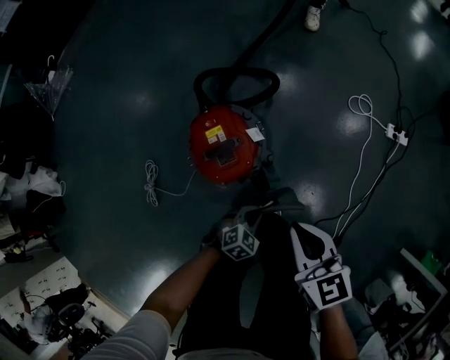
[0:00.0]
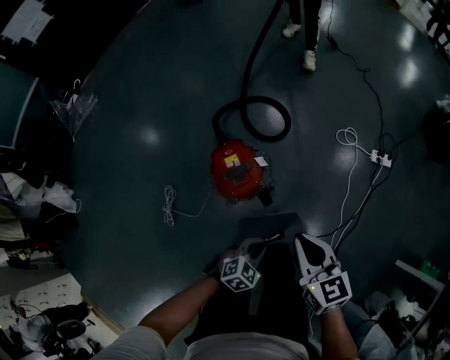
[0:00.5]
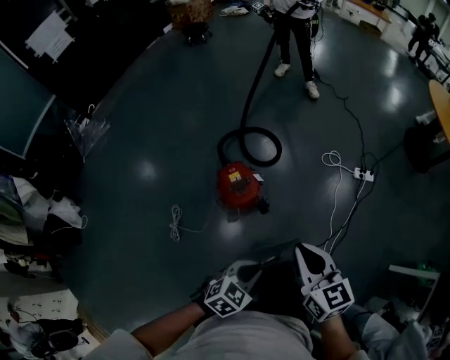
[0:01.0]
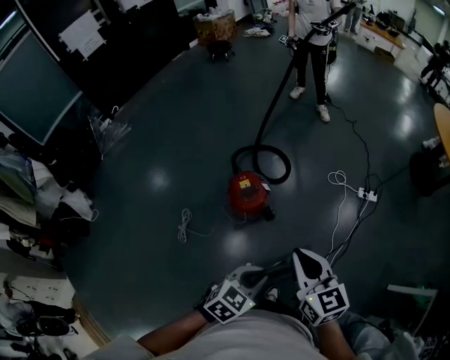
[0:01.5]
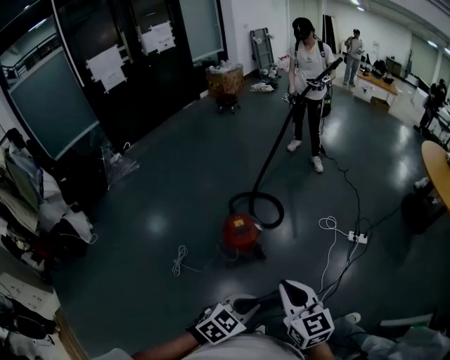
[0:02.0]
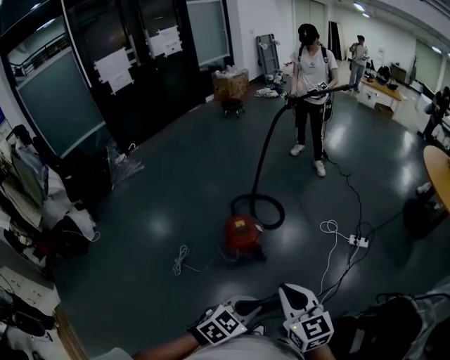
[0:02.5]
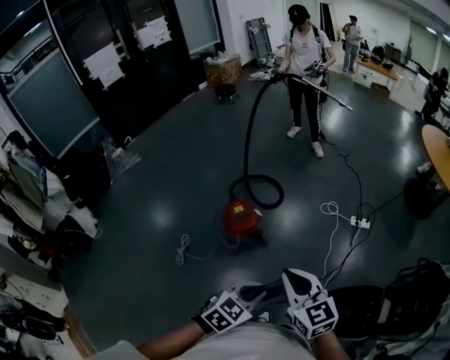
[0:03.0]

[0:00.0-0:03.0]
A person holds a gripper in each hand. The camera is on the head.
0:00.0 to 0:01.5: The left gripper moves upward, roughly 50 cm, and rotates roughly 20 degrees. The right gripper heads upward and backward, covering approximately 40 cm.
0:01.5 to 0:03.0: The left gripper goes roughly 10 cm to the right and backward. The right gripper shifts roughly 10 cm backward and to the right.

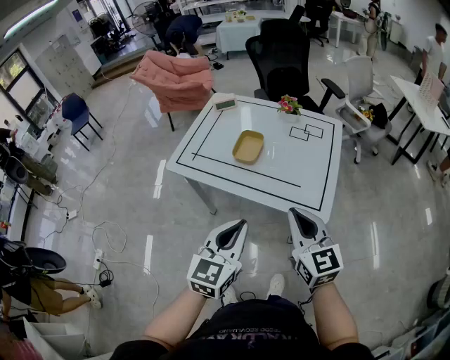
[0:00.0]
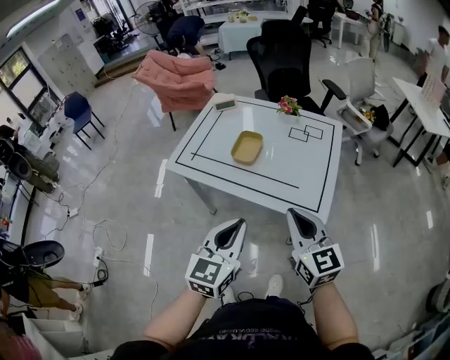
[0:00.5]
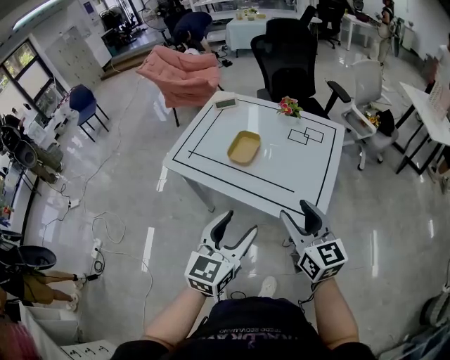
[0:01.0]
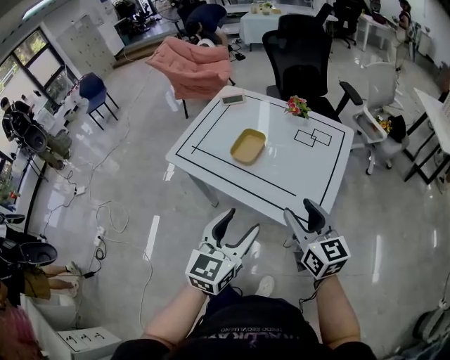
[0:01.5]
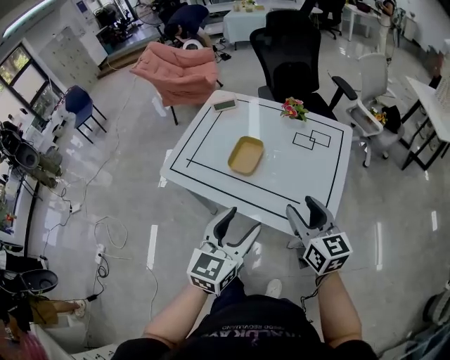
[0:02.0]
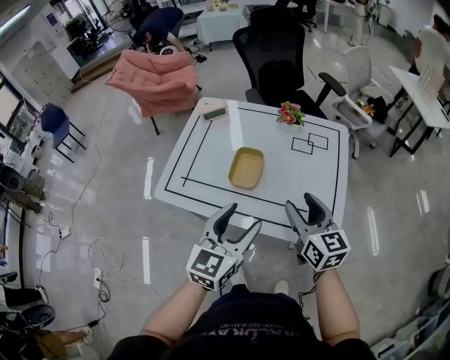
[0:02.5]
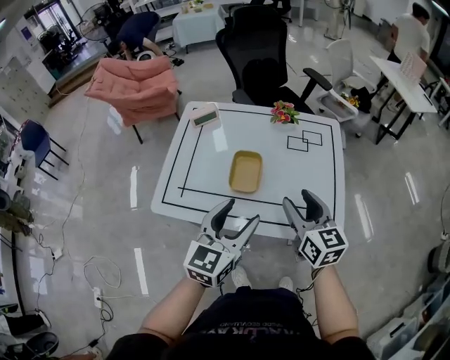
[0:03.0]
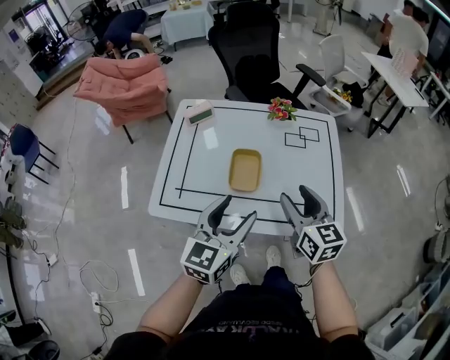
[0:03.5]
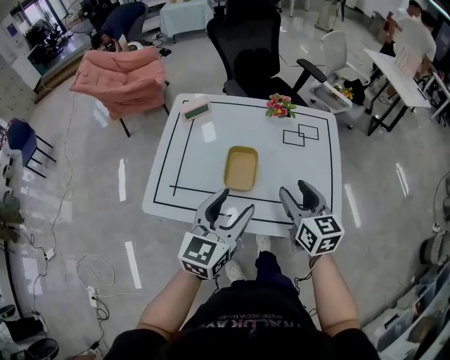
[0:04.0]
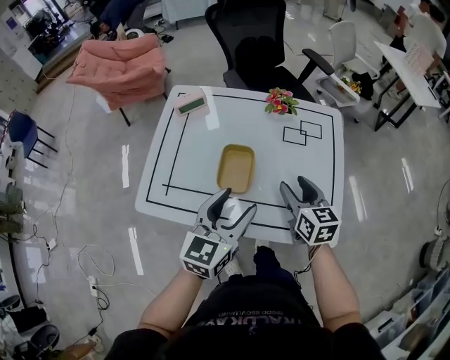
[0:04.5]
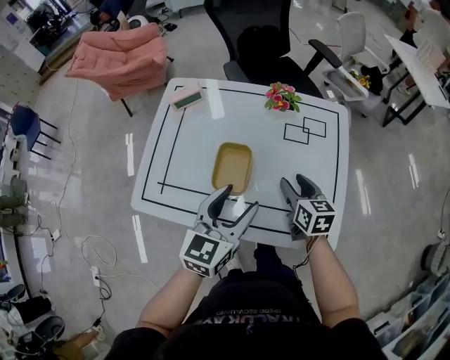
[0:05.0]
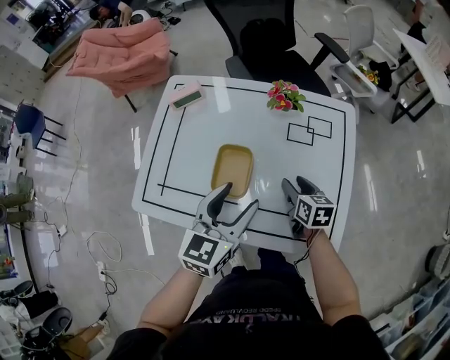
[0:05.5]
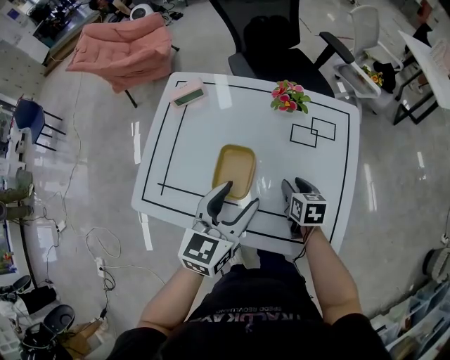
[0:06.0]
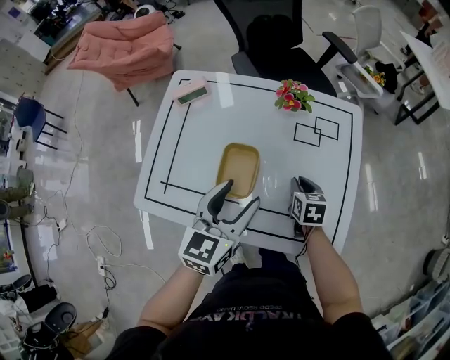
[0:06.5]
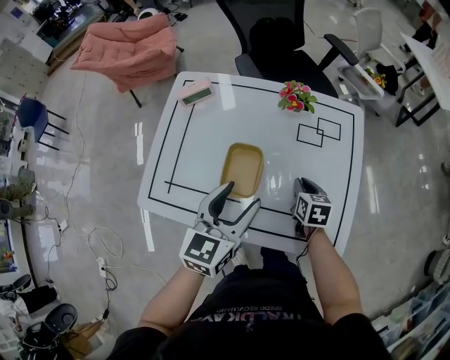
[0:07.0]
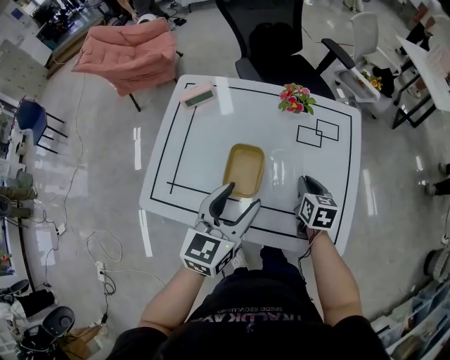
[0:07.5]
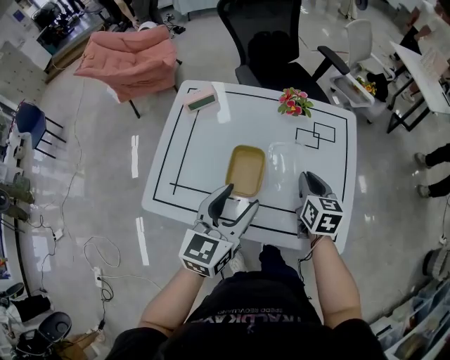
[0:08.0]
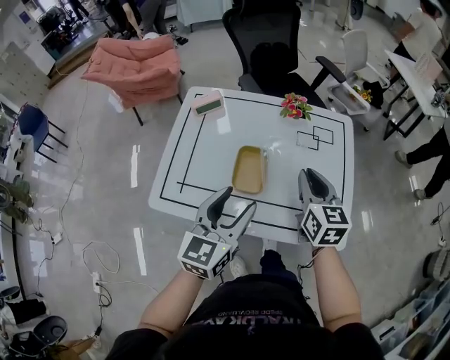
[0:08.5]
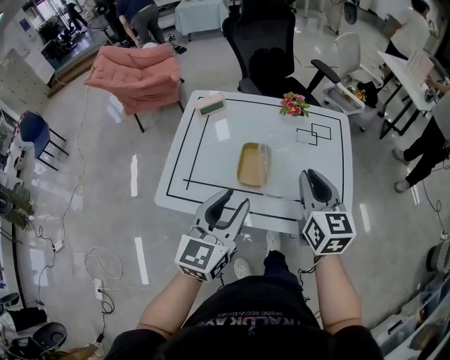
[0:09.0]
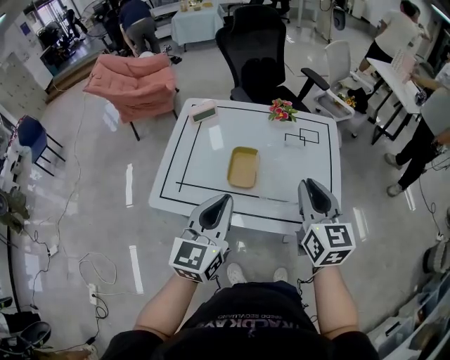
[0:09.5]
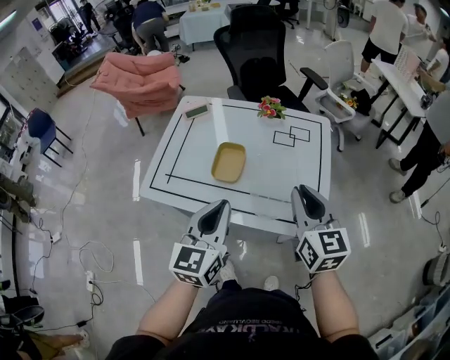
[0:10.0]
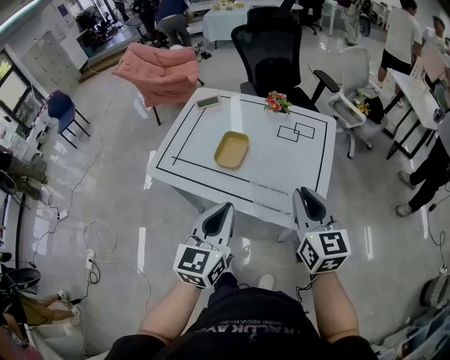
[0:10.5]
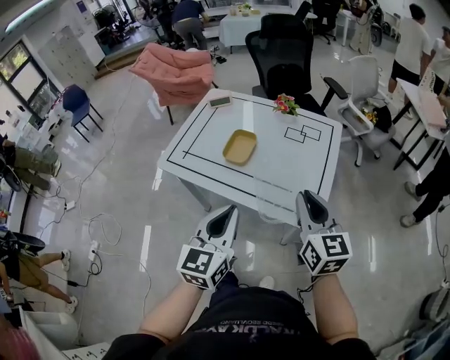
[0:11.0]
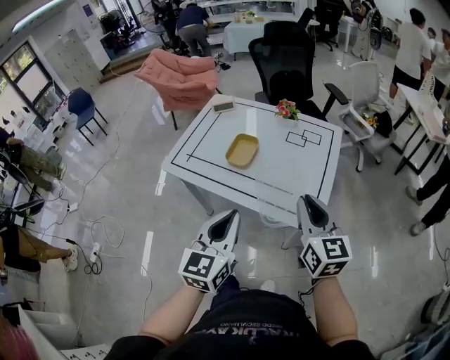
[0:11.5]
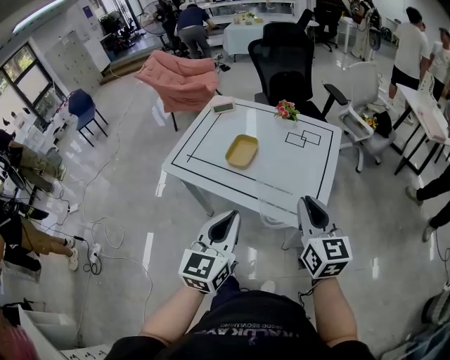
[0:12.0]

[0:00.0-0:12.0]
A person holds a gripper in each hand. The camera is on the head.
0:00.0 to 0:02.0: The left gripper is displaced forward by approximately 10 cm, and opens up. Meanwhile the right gripper heads forward and to the right, covering some 15 cm, and opens its fingers.
0:02.0 to 0:04.0: The two grippers go about 15 cm forward and to the left. The right gripper changes its angle by roughly 20 degrees.
0:04.0 to 0:06.0: The left gripper moves forward, to the right and downward, some 15 cm, while the right gripper heads downward and forward, covering approximately 25 cm, and rotates some 30 degrees.
0:06.0 to 0:08.0: The right gripper shifts roughly 10 cm upward, and closes up, while the left gripper changes place by about 5 cm.
0:08.0 to 0:10.0: The right gripper moves upward and backward, approximately 25 cm, and swivels roughly 20 degrees. Meanwhile the left gripper heads backward and upward, covering about 15 cm, and closes up.
0:10.0 to 0:12.0: The right gripper shifts about 10 cm backward. Meanwhile the left gripper shifts about 15 cm backward and to the right.

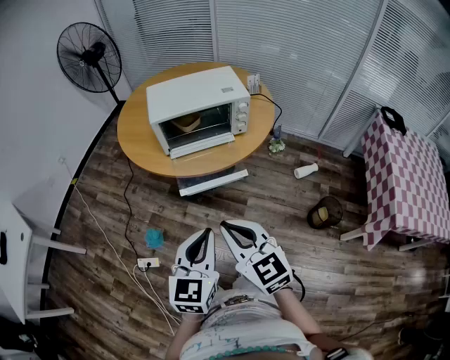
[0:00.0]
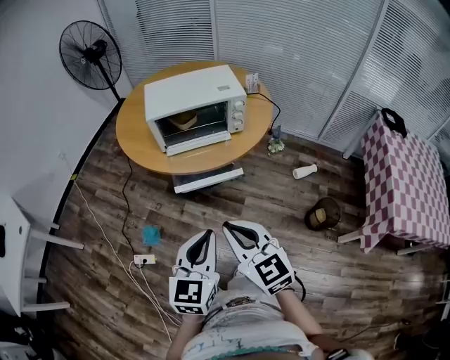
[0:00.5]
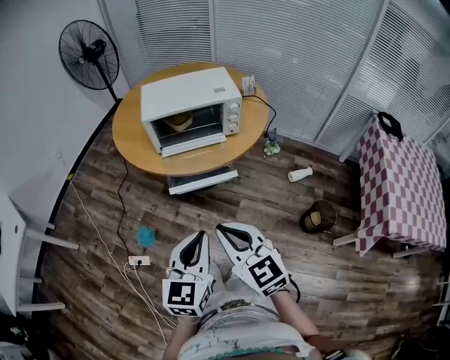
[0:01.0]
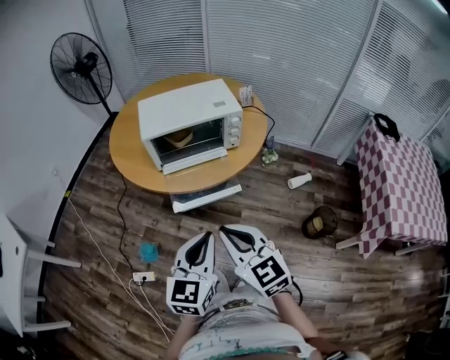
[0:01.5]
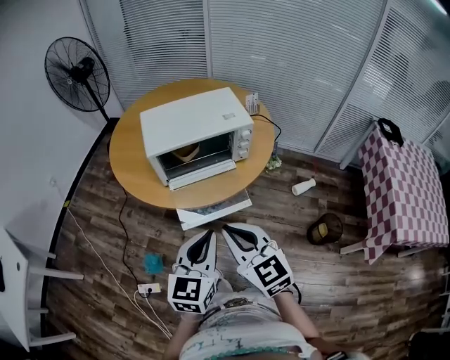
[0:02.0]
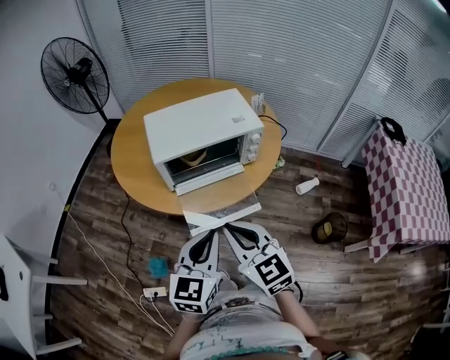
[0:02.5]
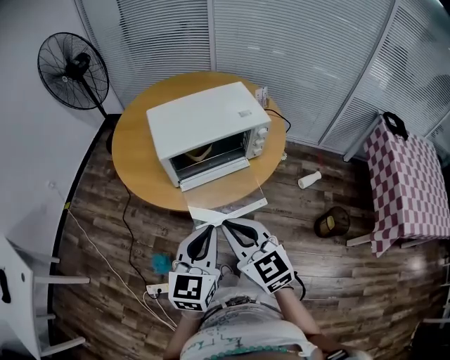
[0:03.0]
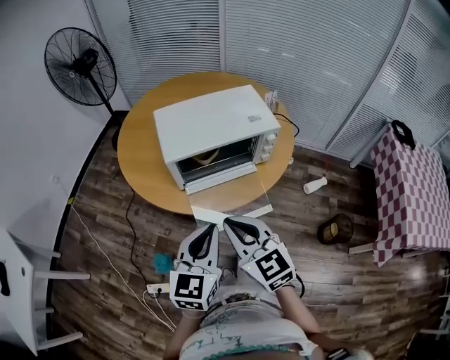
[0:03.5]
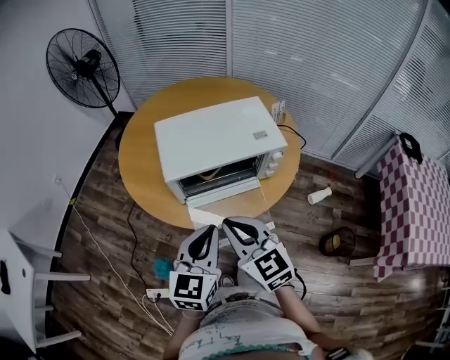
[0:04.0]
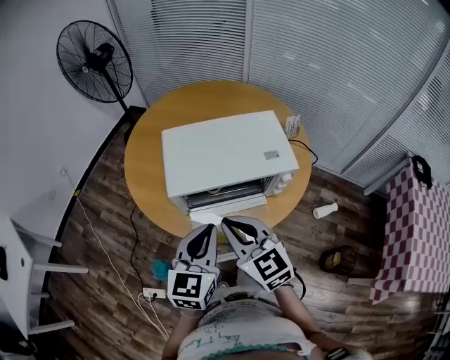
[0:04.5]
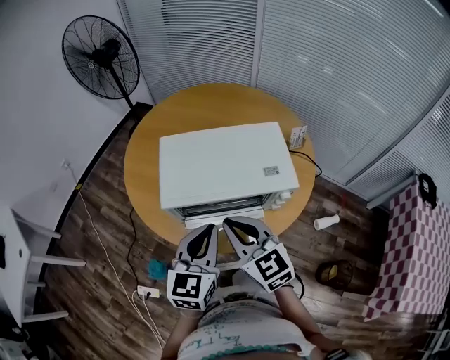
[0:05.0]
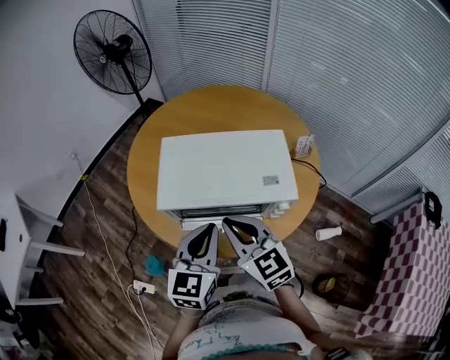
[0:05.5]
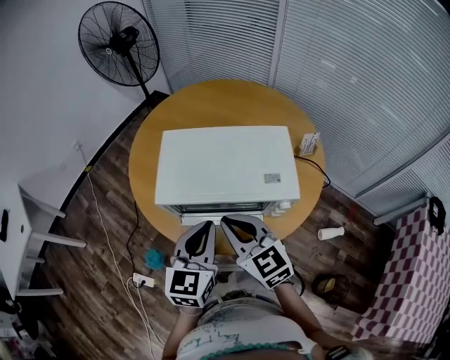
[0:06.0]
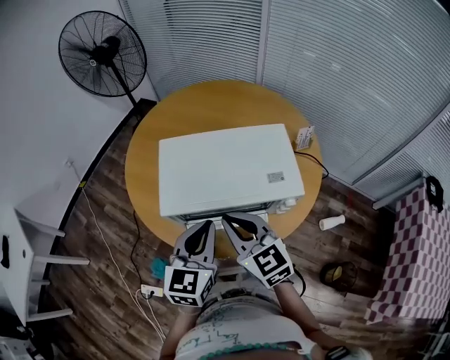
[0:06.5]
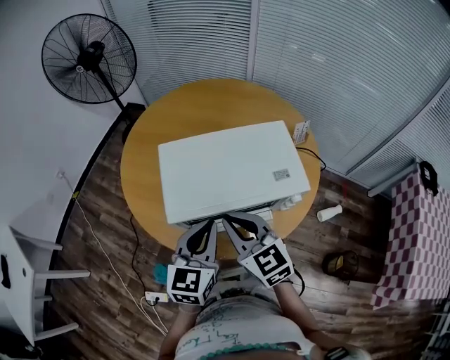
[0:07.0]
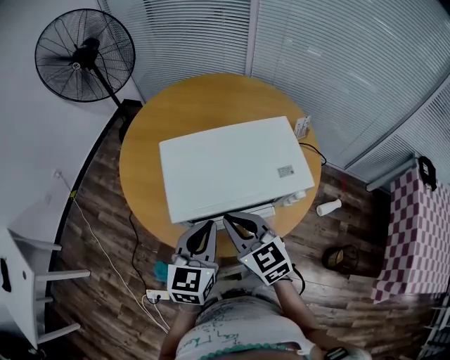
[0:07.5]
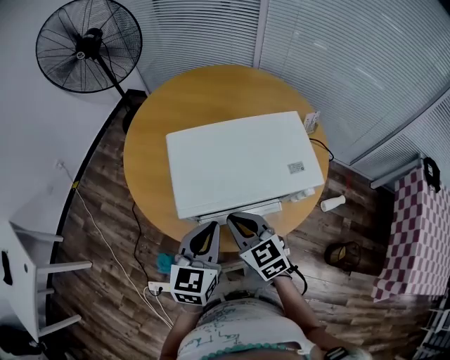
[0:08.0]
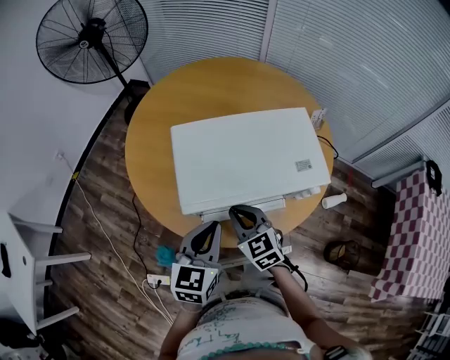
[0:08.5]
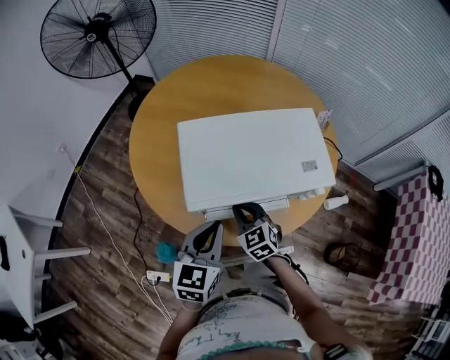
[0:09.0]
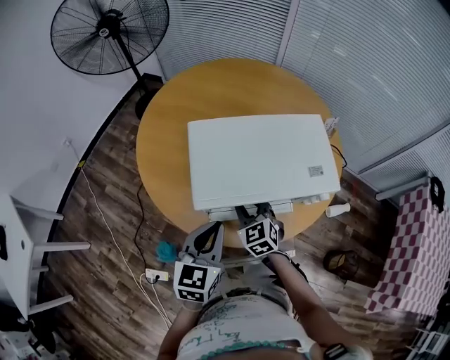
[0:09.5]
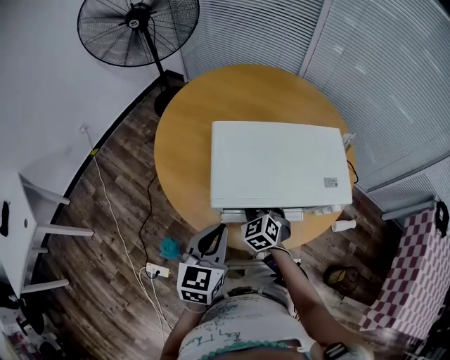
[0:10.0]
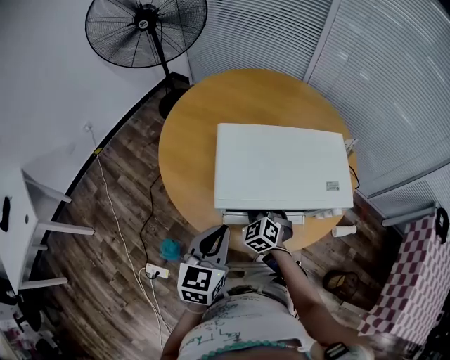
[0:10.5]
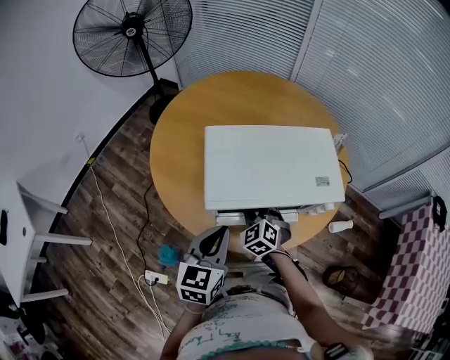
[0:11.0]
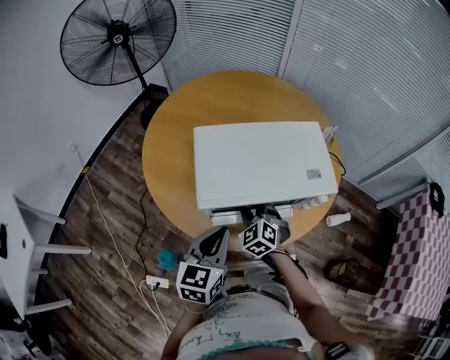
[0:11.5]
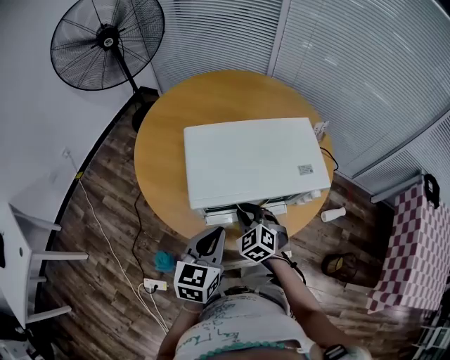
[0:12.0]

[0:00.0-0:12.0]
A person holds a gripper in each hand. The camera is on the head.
0:00.0 to 0:02.0: The two grippers go roughly 15 cm forward.
0:02.0 to 0:04.0: Both grippers move forward, roughly 15 cm.
0:04.0 to 0:06.0: The grippers both shift forward and to the right by about 15 cm.
0:06.0 to 0:08.0: The left gripper moves to the left, approximately 5 cm. Meanwhile the right gripper heads downward and to the left, covering about 10 cm.
0:08.0 to 0:10.0: The left gripper shifts approximately 5 cm to the left; the right gripper moves downward and forward, about 15 cm, swivels approximately 30 degrees, and opens.
0:10.0 to 0:12.0: The right gripper goes roughly 5 cm backward, and closes up.
